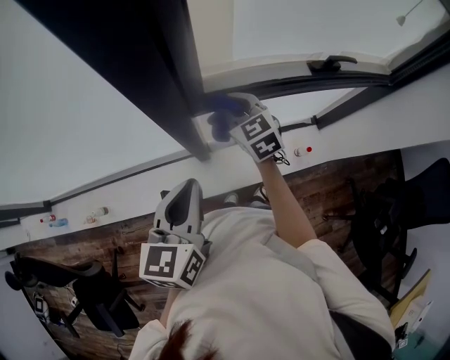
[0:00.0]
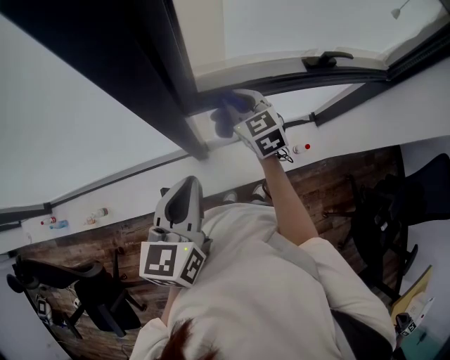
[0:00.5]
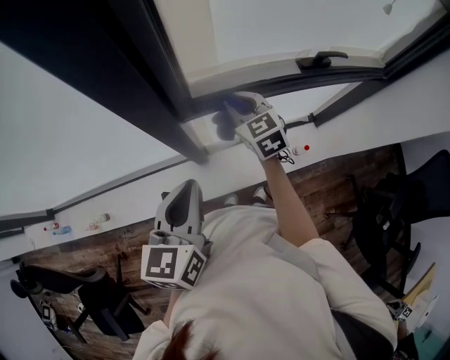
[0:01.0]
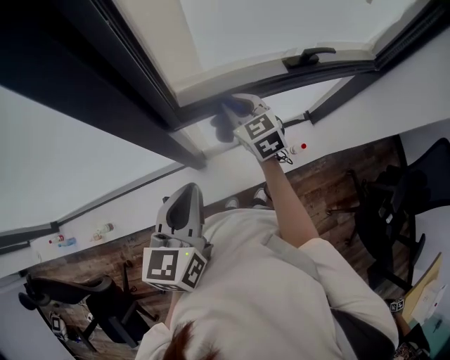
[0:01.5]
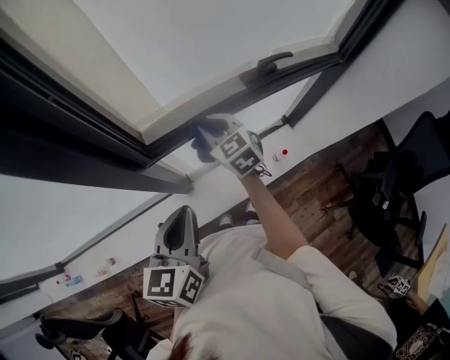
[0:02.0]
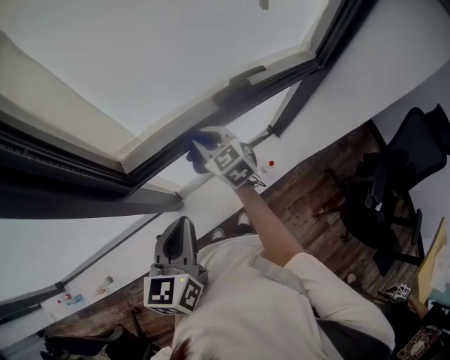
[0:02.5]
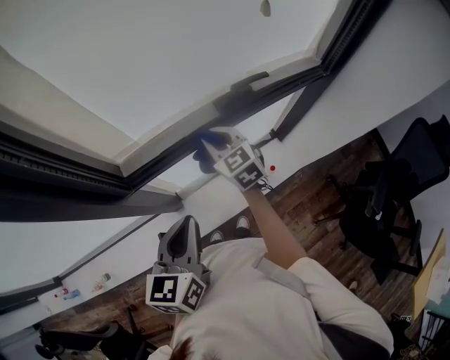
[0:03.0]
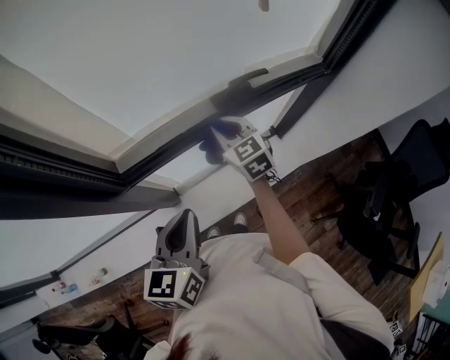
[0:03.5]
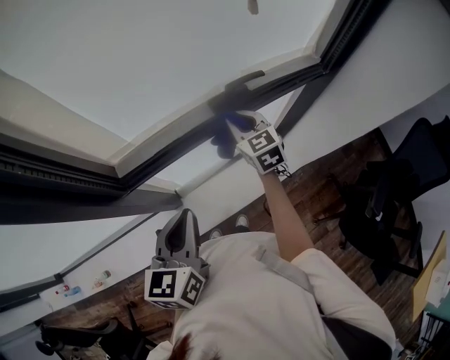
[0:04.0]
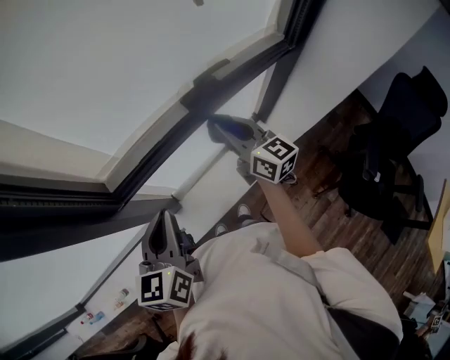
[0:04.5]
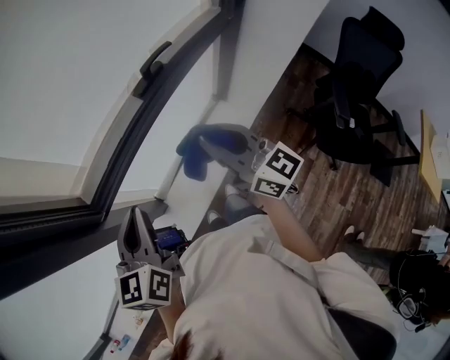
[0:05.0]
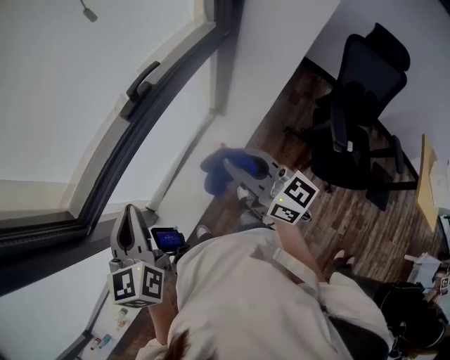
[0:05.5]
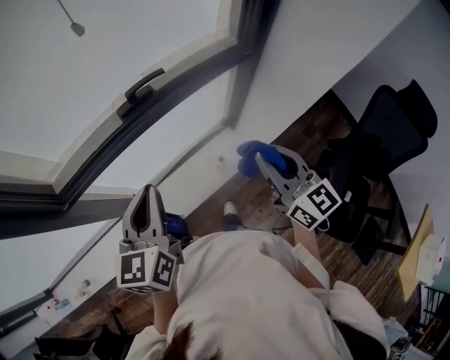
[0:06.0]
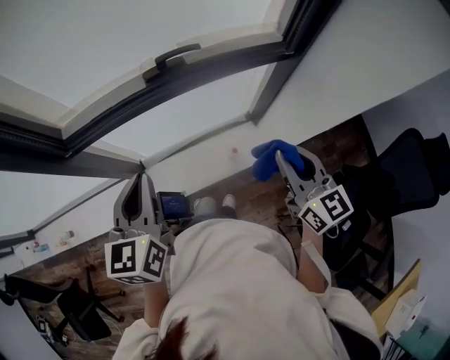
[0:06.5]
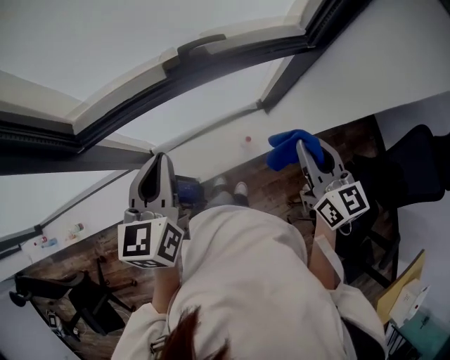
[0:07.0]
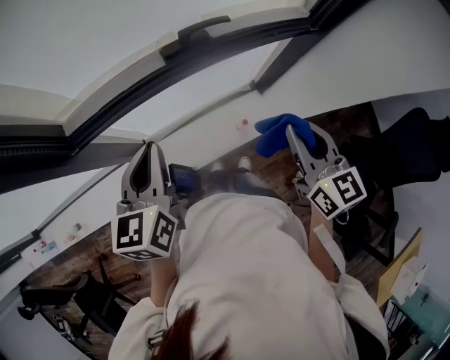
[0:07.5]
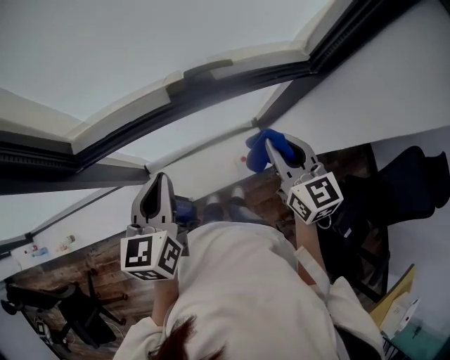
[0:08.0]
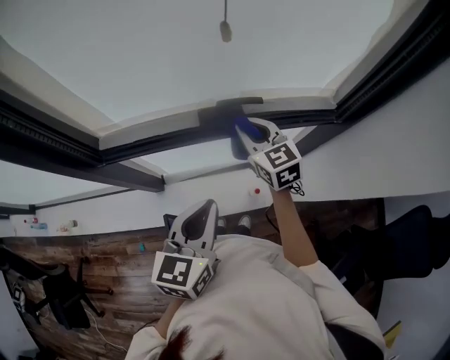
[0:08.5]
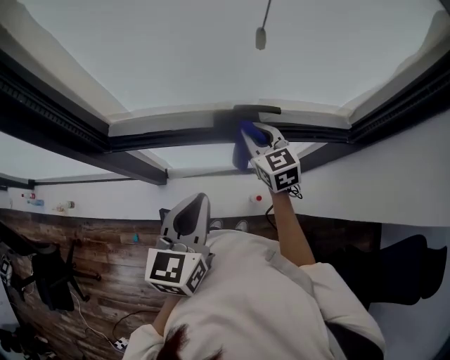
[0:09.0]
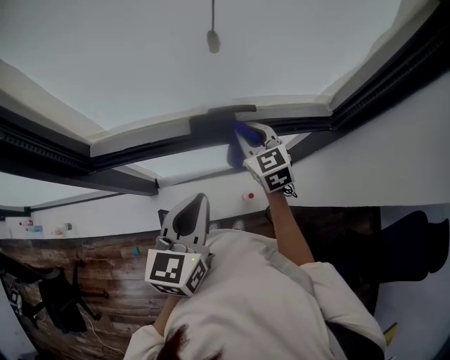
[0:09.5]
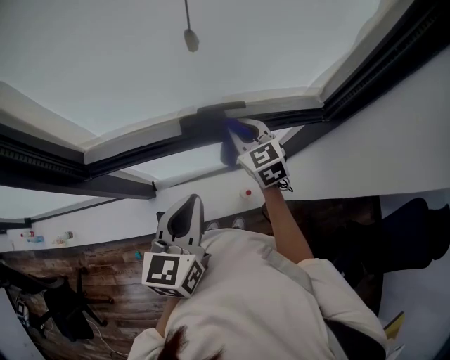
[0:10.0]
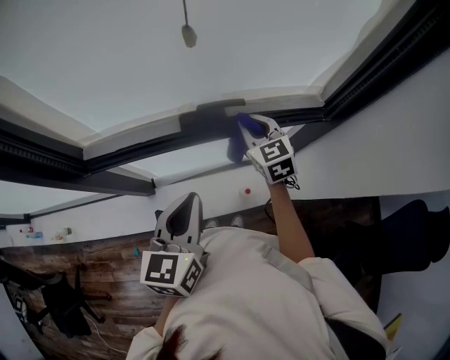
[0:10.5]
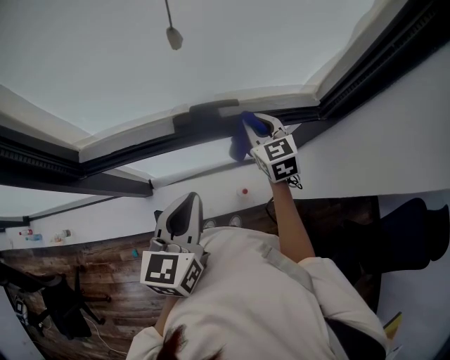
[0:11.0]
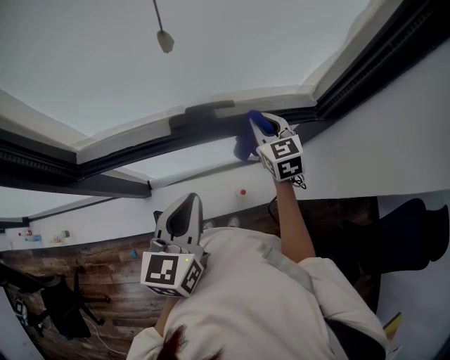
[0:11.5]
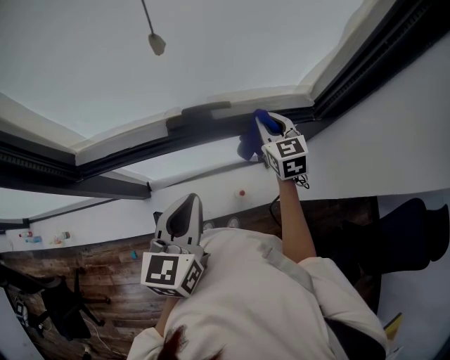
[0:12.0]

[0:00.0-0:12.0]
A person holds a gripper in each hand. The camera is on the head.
0:00.0 to 0:02.0: Both grippers move to the right, roughly 10 cm.
0:02.0 to 0:04.0: The right gripper travels to the right by some 20 cm. The left gripper moves to the right, roughly 10 cm.
0:04.0 to 0:06.0: The left gripper heads to the right, covering approximately 15 cm, while the right gripper shifts some 35 cm to the right and backward, and turns by approximately 30 degrees.
0:06.0 to 0:08.0: The right gripper travels forward and to the left by about 15 cm; the left gripper shifts approximately 5 cm to the left.
0:08.0 to 0:10.0: The right gripper shifts approximately 20 cm forward, and turns by some 20 degrees. Meanwhile the left gripper is displaced to the right by roughly 10 cm.
0:10.0 to 0:12.0: The right gripper heads to the right, covering approximately 10 cm.

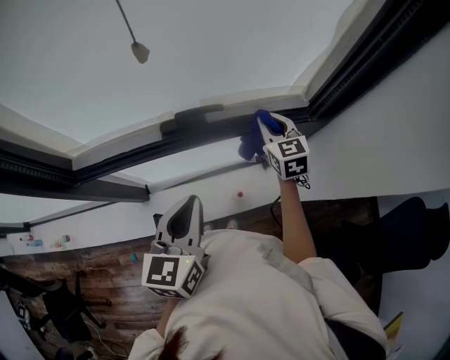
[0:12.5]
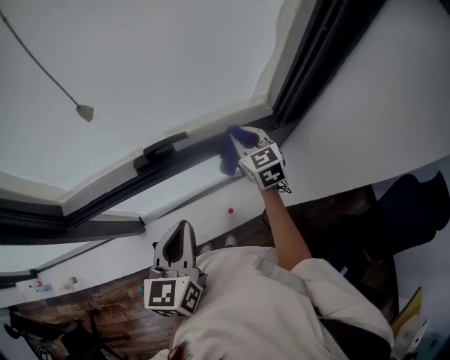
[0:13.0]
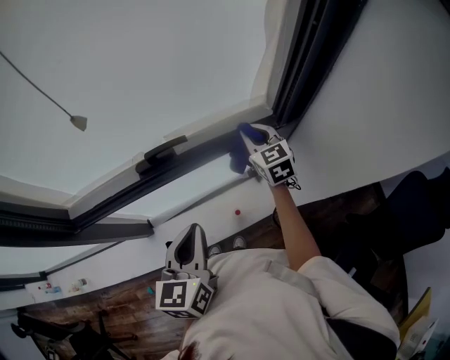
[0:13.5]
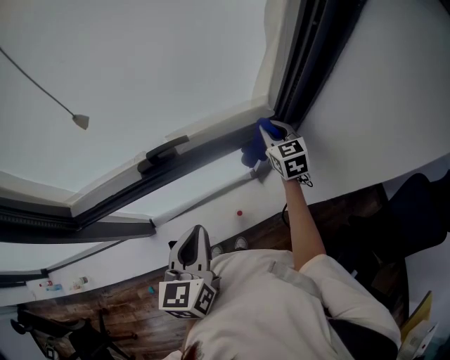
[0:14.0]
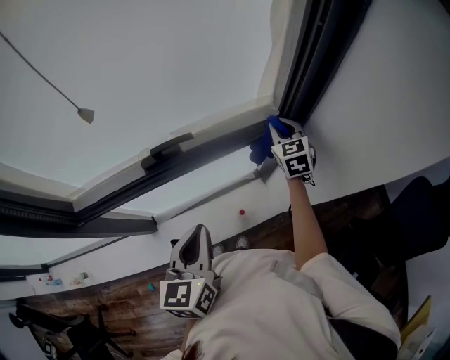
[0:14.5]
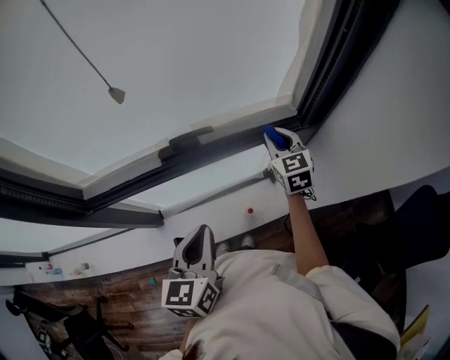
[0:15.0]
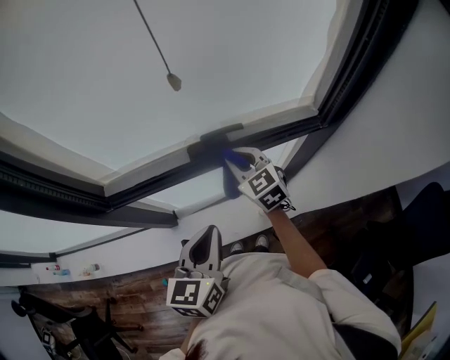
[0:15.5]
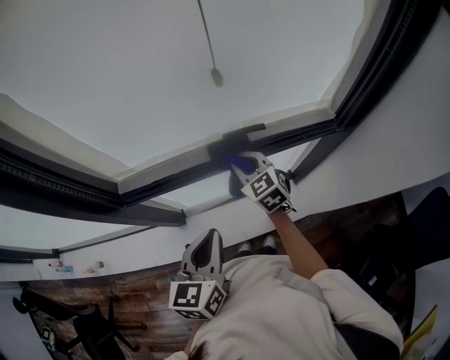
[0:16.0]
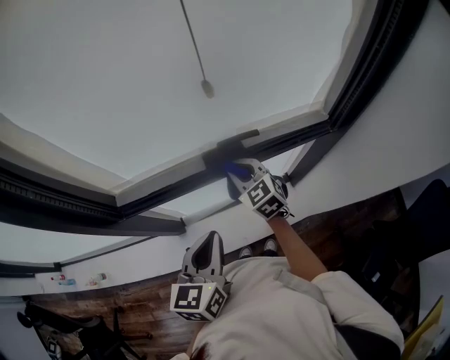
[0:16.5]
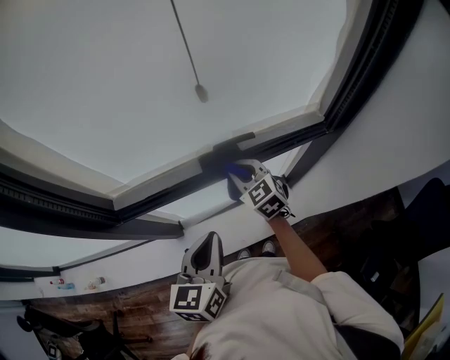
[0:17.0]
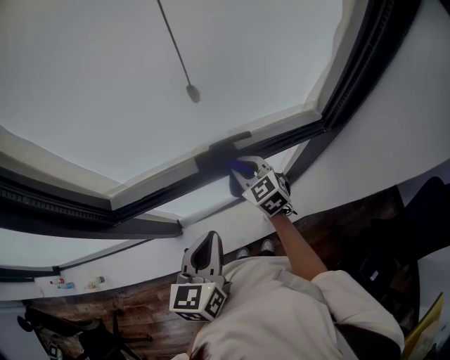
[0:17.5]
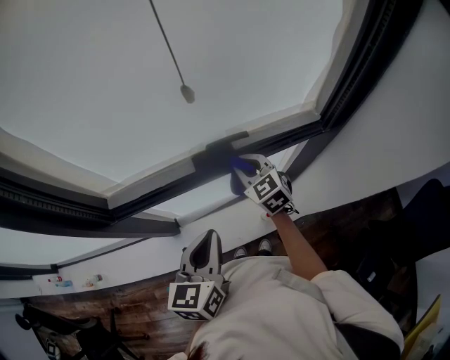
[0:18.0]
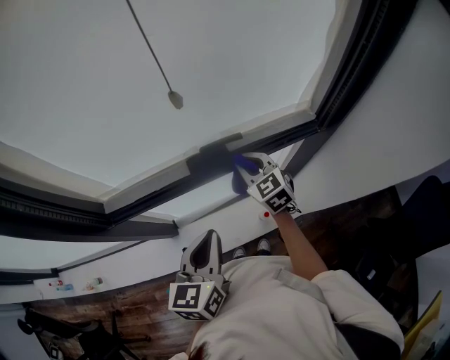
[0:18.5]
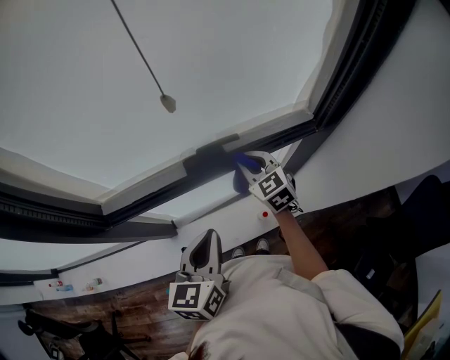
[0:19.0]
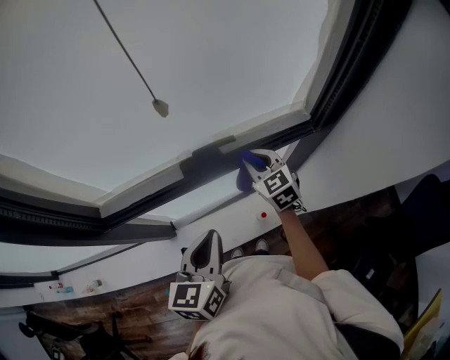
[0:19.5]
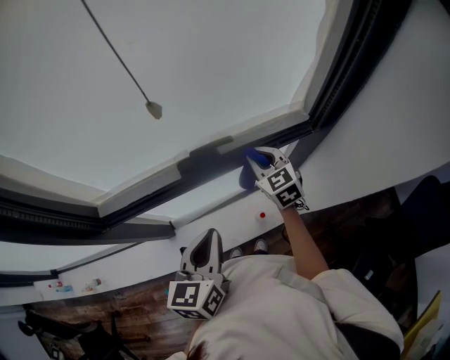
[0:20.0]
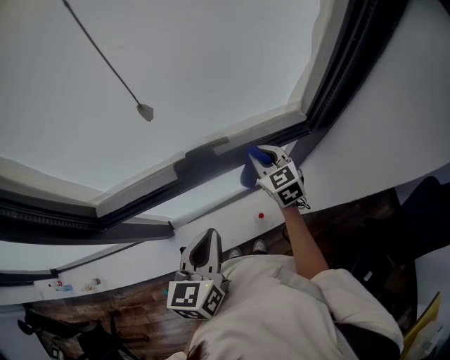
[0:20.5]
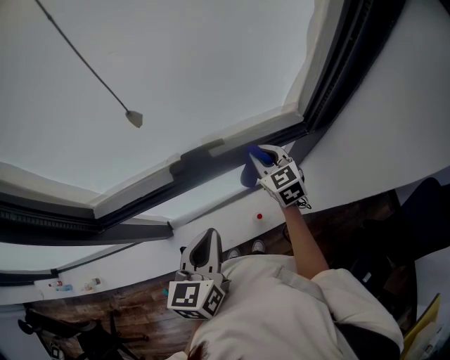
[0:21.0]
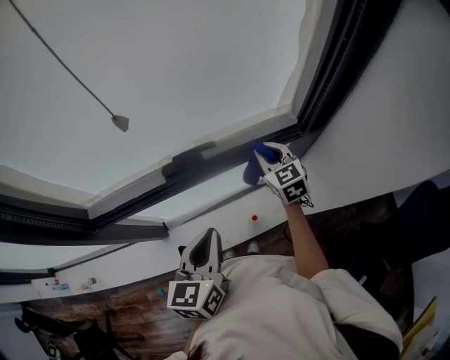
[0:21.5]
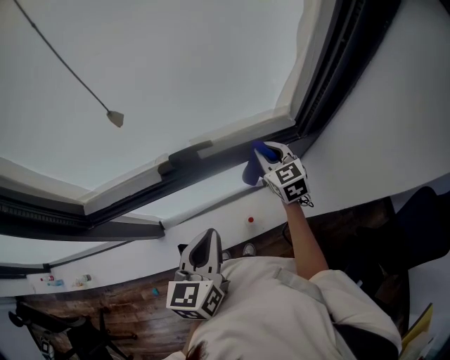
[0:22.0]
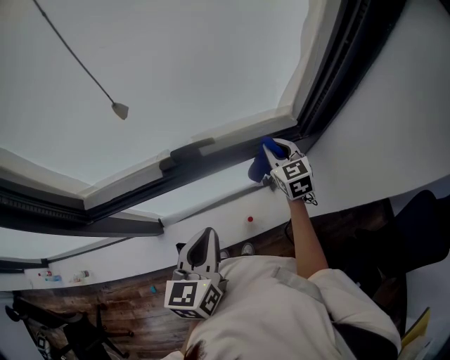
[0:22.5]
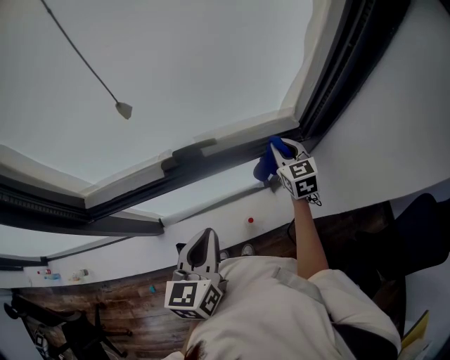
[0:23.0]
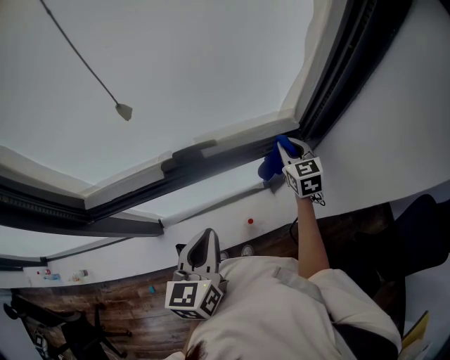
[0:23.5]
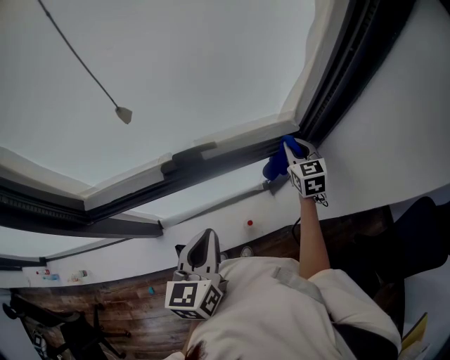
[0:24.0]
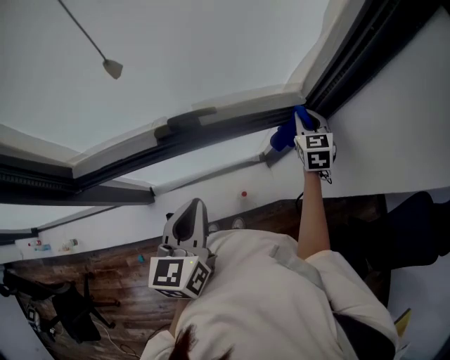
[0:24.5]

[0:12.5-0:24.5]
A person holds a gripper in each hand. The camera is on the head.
0:12.5 to 0:14.5: The left gripper shifts some 5 cm to the right; the right gripper travels to the right by roughly 15 cm.
0:14.5 to 0:16.5: The left gripper is displaced to the left by about 15 cm; the right gripper moves to the left, about 35 cm, and rotates about 30 degrees.
0:16.5 to 0:18.5: The right gripper travels to the right by about 10 cm.
0:18.5 to 0:20.5: The right gripper moves to the right, roughly 10 cm.
0:20.5 to 0:22.5: The right gripper is displaced to the right by some 10 cm.
0:22.5 to 0:24.5: The right gripper heads to the right, covering roughly 10 cm.

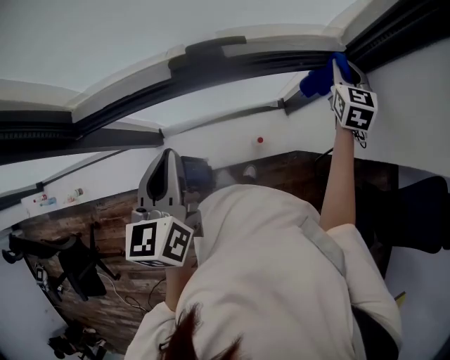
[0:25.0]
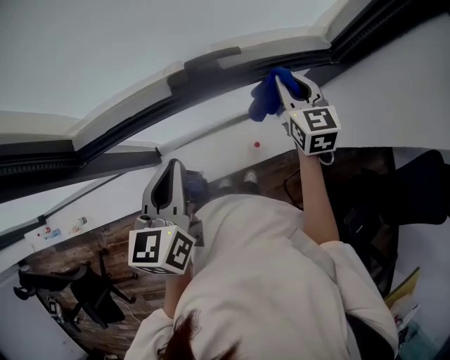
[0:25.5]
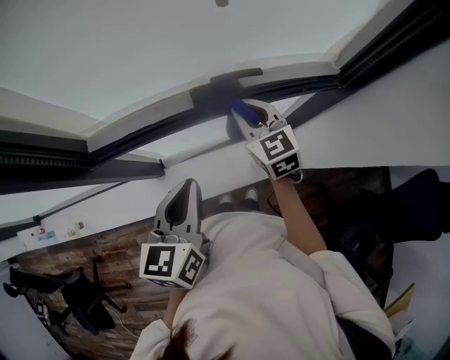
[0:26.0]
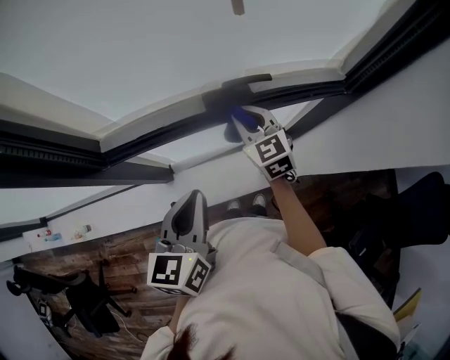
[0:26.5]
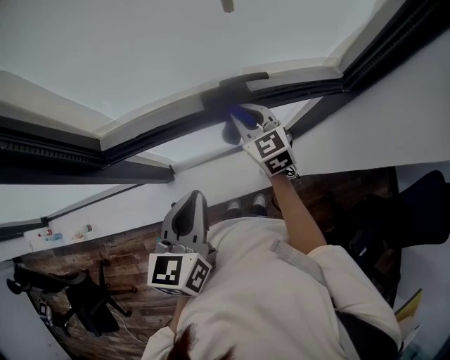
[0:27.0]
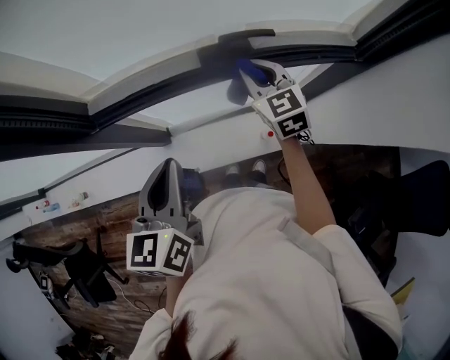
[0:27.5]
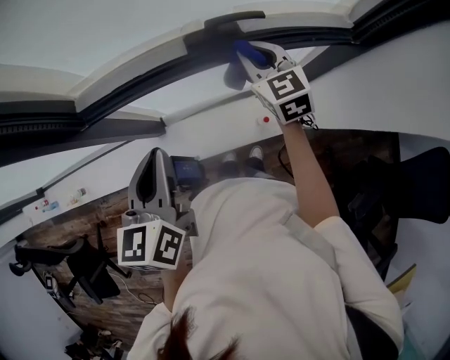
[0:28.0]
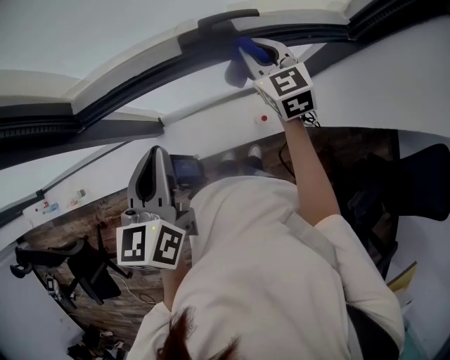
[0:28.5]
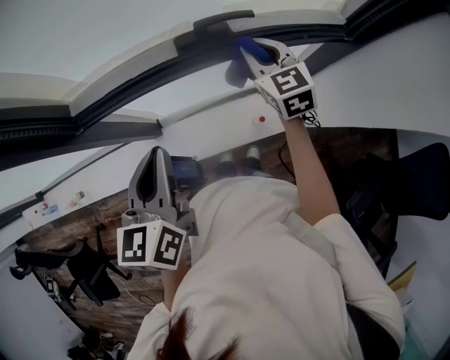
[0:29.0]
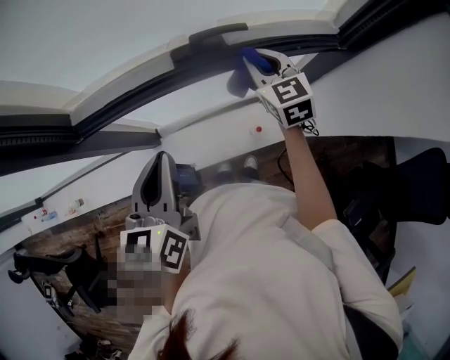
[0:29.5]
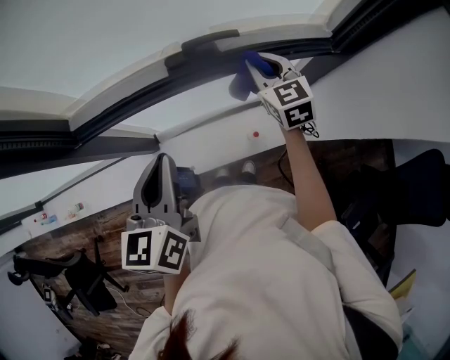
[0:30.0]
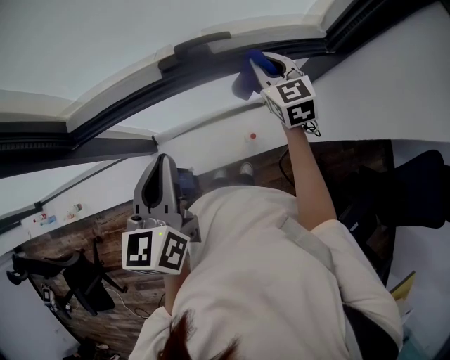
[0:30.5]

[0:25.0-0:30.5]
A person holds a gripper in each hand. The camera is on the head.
0:25.0 to 0:27.0: The right gripper goes approximately 35 cm to the left, and changes its angle by approximately 30 degrees. Meanwhile the left gripper shifts by about 5 cm.
0:27.0 to 0:28.5: The right gripper is displaced to the right by roughly 5 cm.
0:28.5 to 0:30.5: The two grippers go some 10 cm to the right.
